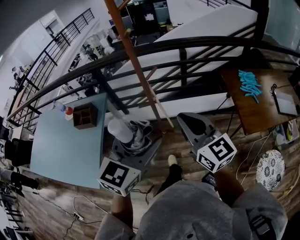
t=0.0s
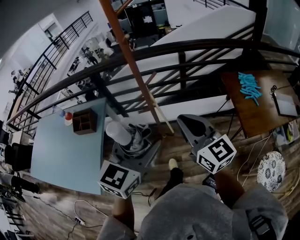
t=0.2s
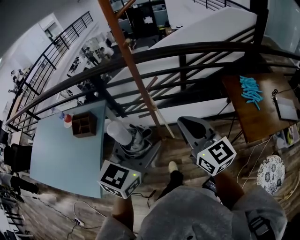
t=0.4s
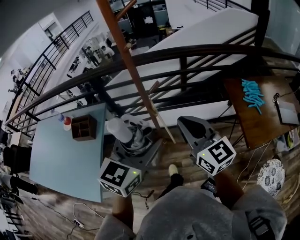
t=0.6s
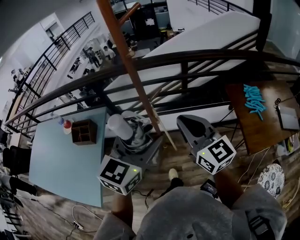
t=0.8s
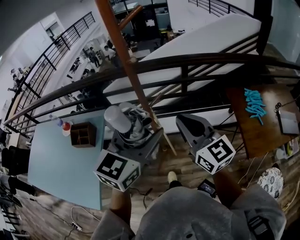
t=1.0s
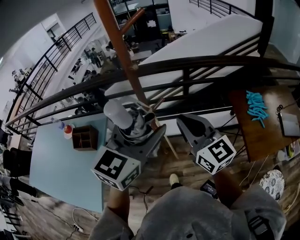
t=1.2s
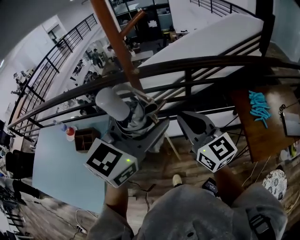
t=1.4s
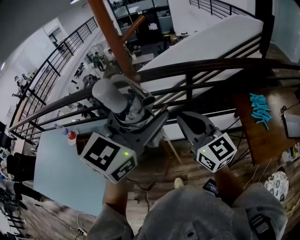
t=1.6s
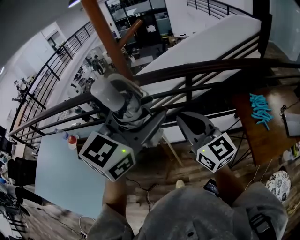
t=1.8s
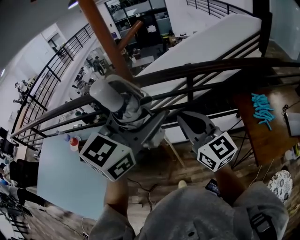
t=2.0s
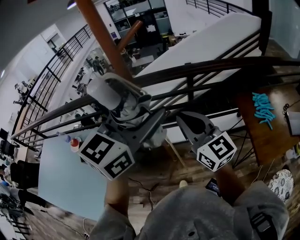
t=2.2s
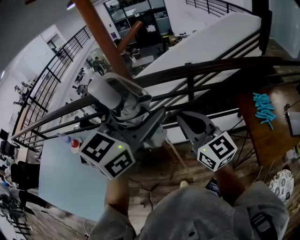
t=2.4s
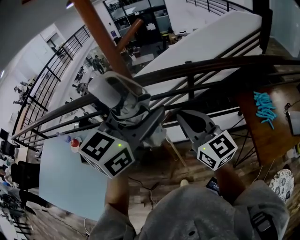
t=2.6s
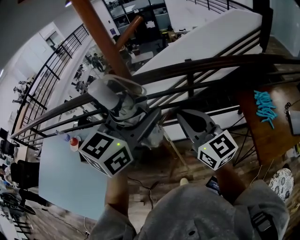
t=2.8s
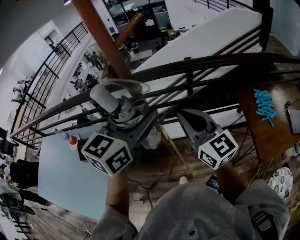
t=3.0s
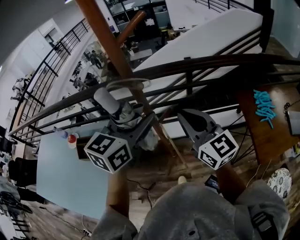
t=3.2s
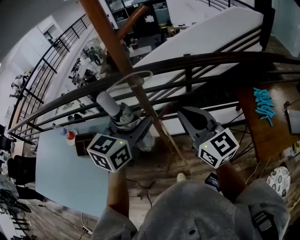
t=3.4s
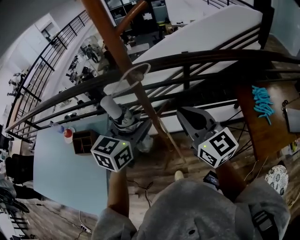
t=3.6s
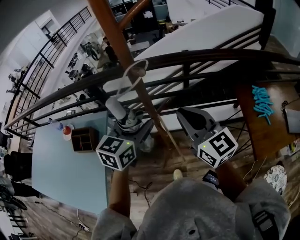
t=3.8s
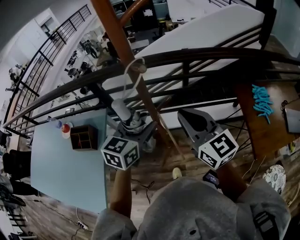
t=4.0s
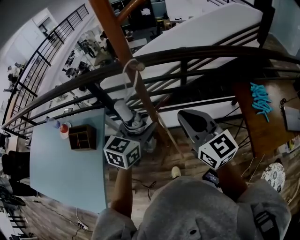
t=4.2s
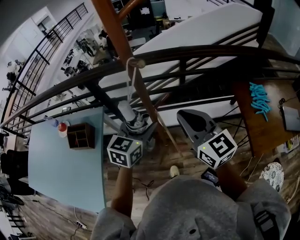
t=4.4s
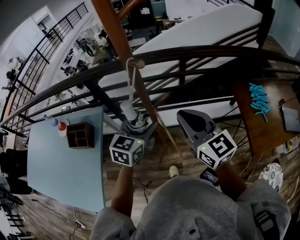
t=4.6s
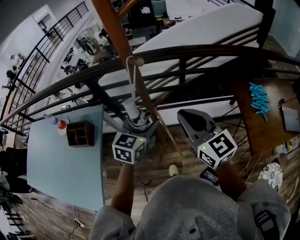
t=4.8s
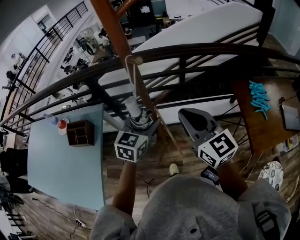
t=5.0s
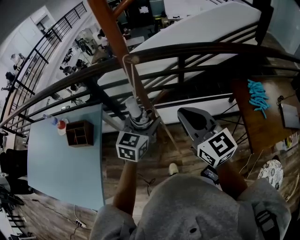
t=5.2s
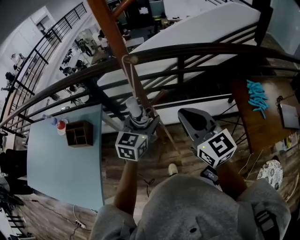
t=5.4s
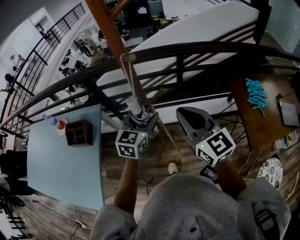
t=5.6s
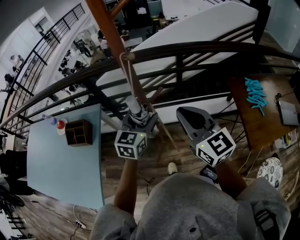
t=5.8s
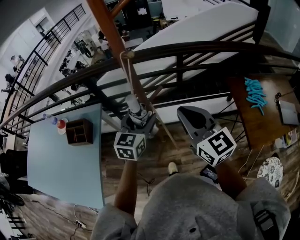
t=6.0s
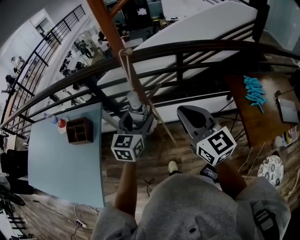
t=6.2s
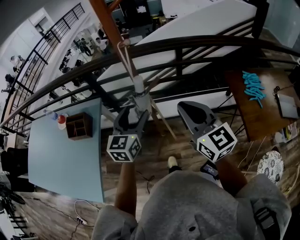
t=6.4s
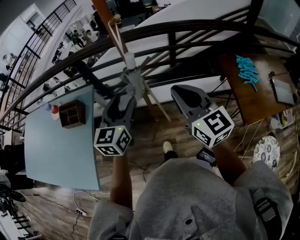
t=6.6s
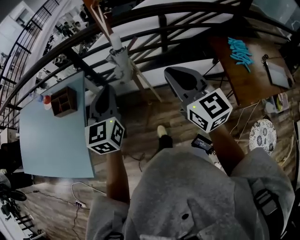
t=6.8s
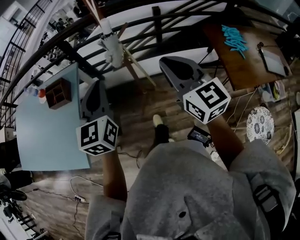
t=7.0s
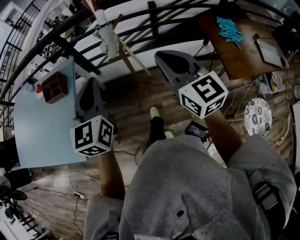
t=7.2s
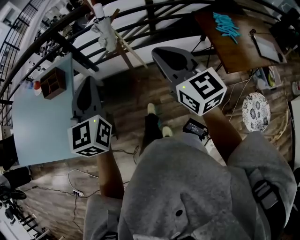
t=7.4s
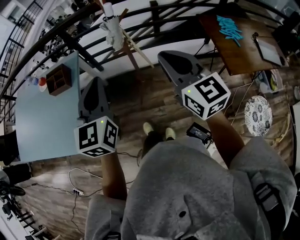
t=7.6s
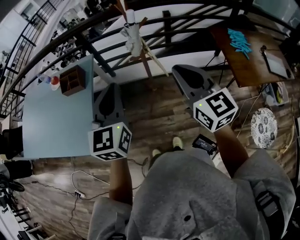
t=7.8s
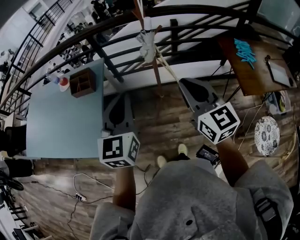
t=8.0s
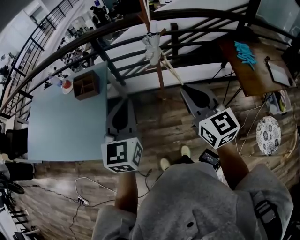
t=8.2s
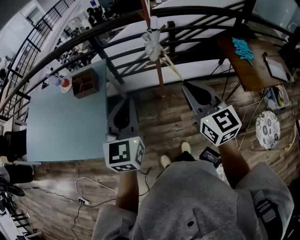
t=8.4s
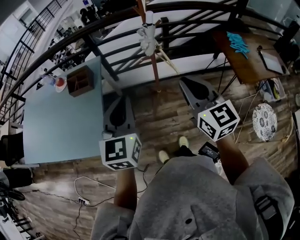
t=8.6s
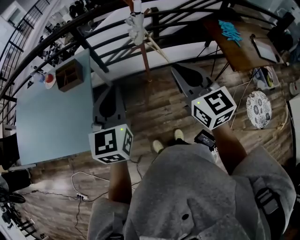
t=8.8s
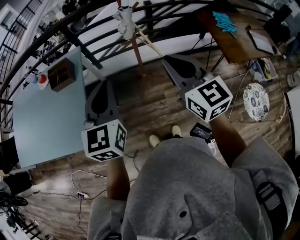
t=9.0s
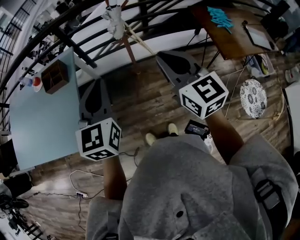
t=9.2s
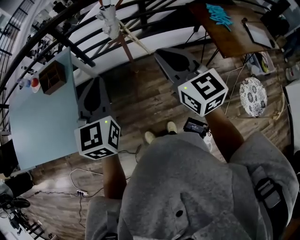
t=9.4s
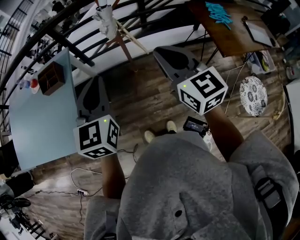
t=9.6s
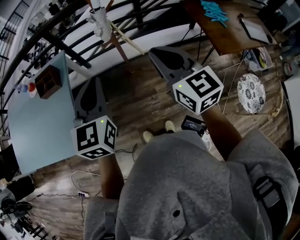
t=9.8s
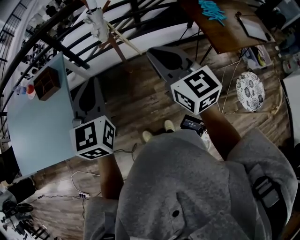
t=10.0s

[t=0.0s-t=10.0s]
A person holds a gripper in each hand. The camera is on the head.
t=0.0s to t=1.4s: The right gripper moves forward, about 20 cm. Meanwhile the left gripper heads forward and upward, covering approximately 25 cm.
t=1.4s to t=2.8s: The grippers both shift forward by about 5 cm.
t=2.8s to t=4.2s: The left gripper goes about 20 cm downward; the right gripper ends up roughly 5 cm from where it was.
t=4.2s to t=5.8s: There are only small adjustments of the grippers.
t=5.8s to t=7.2s: Both grippers move backward, approximately 20 cm. The left gripper changes its angle by about 20 degrees, and closes.
t=7.2s to t=8.6s: The two grippers go roughly 20 cm to the left and backward.
t=8.6s to t=10.0s: Both grippers move to the right, some 10 cm.

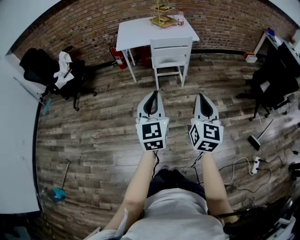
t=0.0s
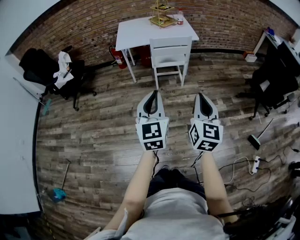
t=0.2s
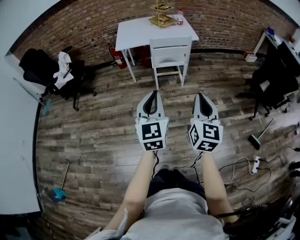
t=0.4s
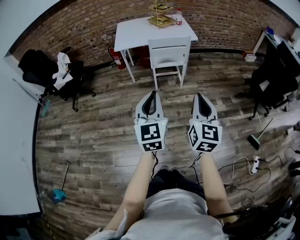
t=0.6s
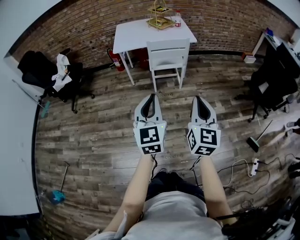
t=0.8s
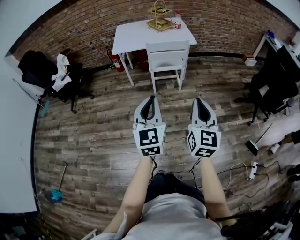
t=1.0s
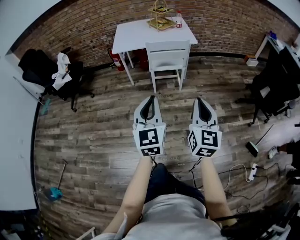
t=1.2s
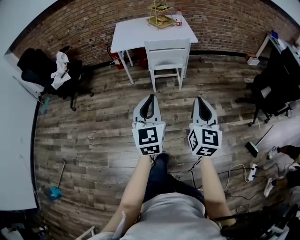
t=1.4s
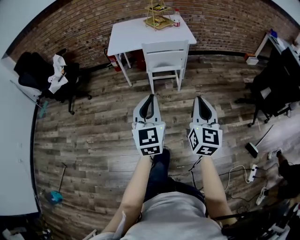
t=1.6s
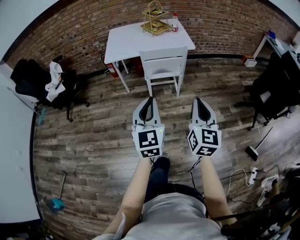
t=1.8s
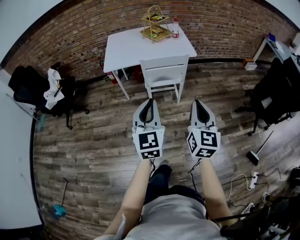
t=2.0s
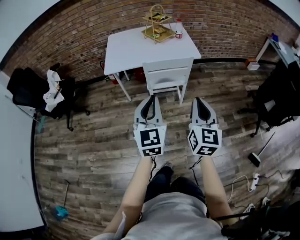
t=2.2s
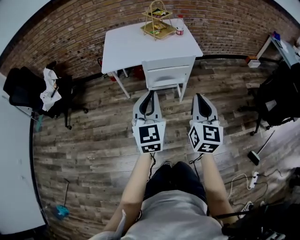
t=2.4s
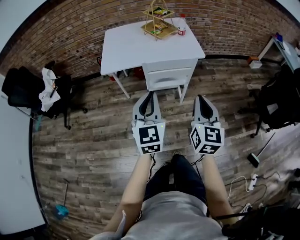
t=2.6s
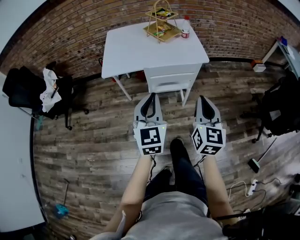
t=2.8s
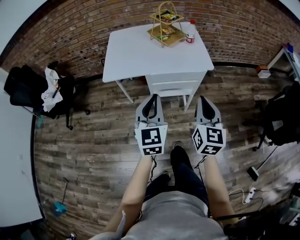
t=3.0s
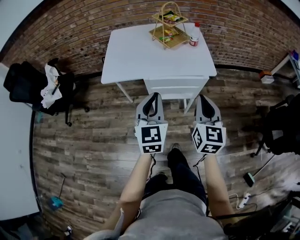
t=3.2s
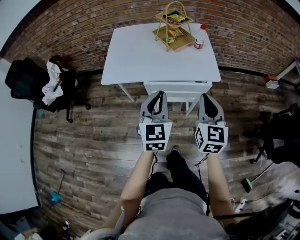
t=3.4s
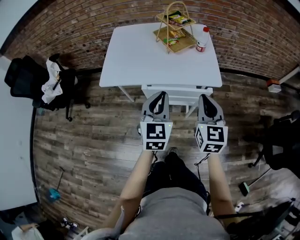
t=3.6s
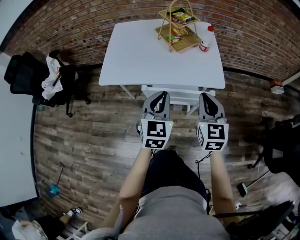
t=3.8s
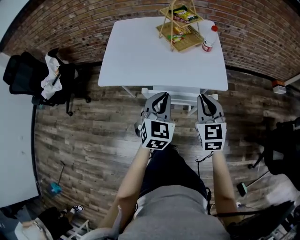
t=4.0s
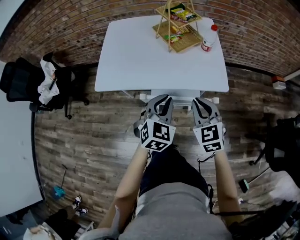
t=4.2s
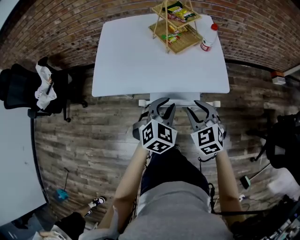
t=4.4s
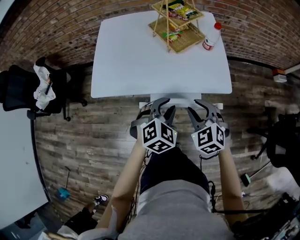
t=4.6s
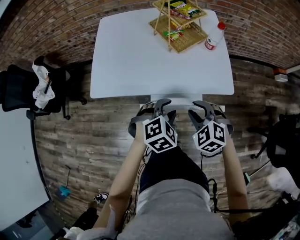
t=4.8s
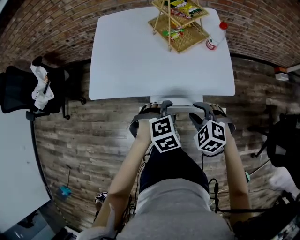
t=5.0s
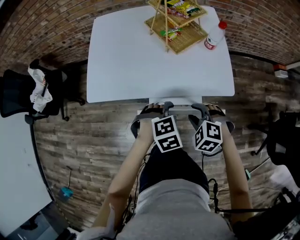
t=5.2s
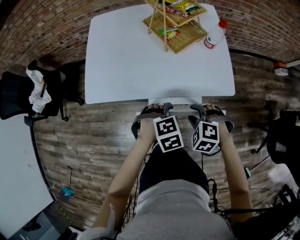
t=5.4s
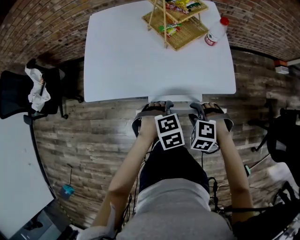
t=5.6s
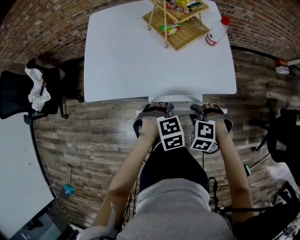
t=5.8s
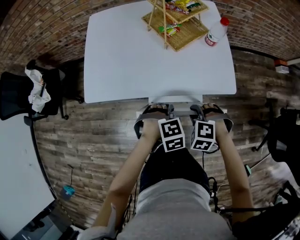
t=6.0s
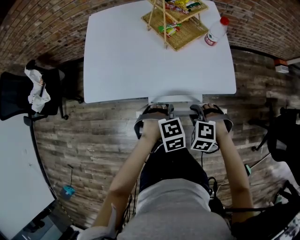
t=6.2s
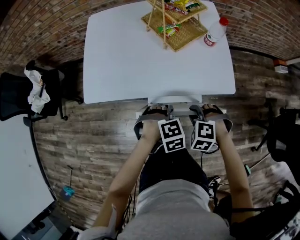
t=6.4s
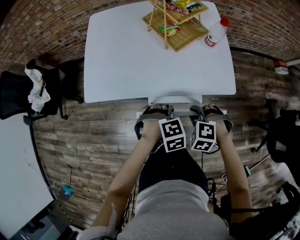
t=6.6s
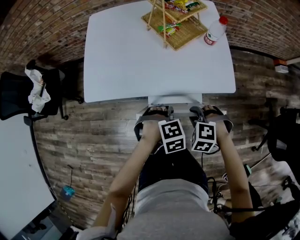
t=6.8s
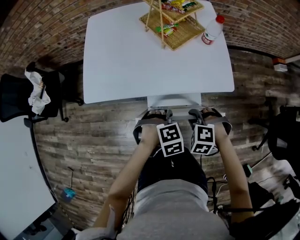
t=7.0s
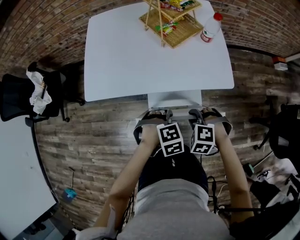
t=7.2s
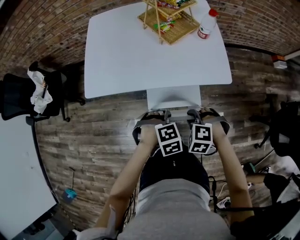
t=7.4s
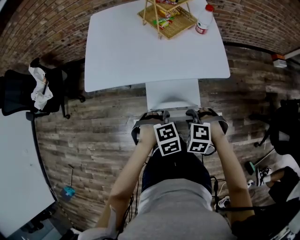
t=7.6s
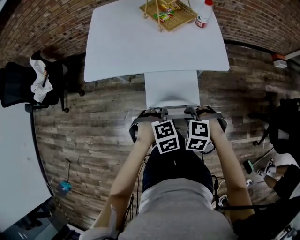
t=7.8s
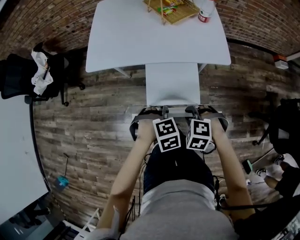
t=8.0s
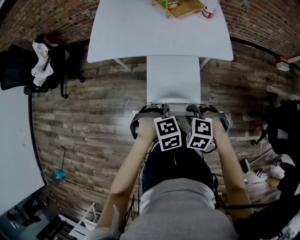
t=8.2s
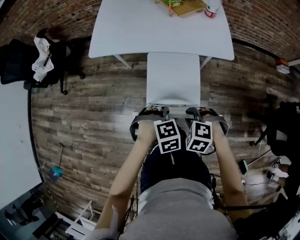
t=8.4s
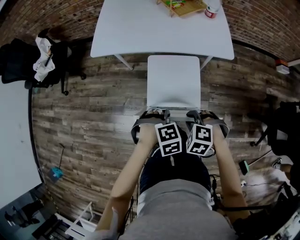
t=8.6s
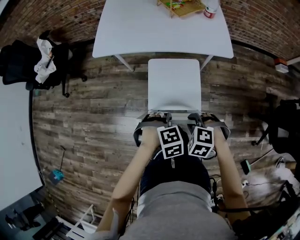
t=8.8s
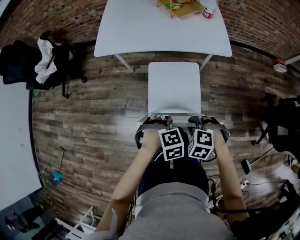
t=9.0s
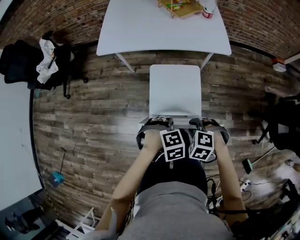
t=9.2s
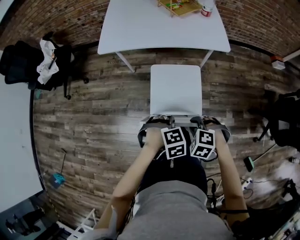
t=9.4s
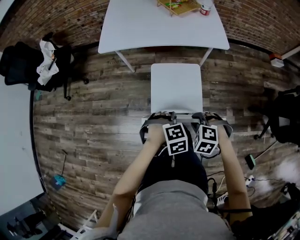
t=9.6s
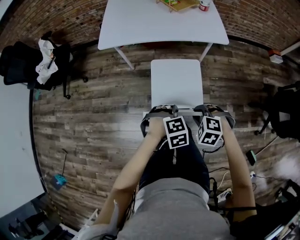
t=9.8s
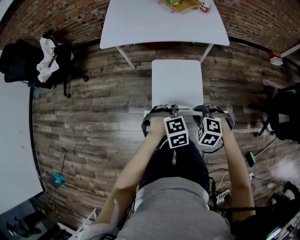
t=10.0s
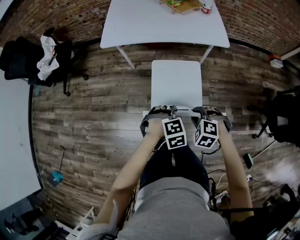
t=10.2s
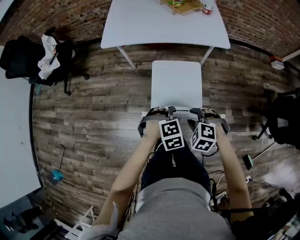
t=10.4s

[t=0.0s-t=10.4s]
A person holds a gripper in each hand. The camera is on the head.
t=0.0s to t=1.4s: The left gripper moves some 5 cm, while the right gripper goes about 5 cm forward.
t=1.4s to t=3.0s: The grippers both shift forward by some 40 cm.
t=3.0s to t=4.4s: The grippers both shift forward and downward by some 25 cm. The right gripper changes its angle by about 50 degrees, and opens up; the left gripper points its fingers some 30 degrees further downward, and opens its fingers.
t=4.4s to t=6.0s: The grippers both shift downward by approximately 10 cm. The left gripper angles its fingers downward, by about 40 degrees, and opens and closes again. The right gripper tilts its fingers roughly 40 degrees downward.
t=6.0s to t=7.4s: The right gripper ends up some 5 cm from where it was; the left gripper changes place by some 5 cm.
t=7.4s to t=9.0s: The right gripper shifts by some 25 cm, while the left gripper shifts by about 25 cm.
t=9.0s to t=10.4s: The right gripper opens its fingers.

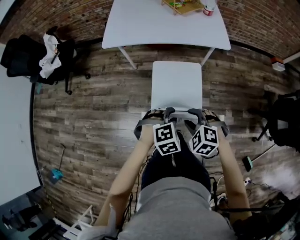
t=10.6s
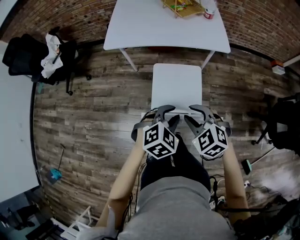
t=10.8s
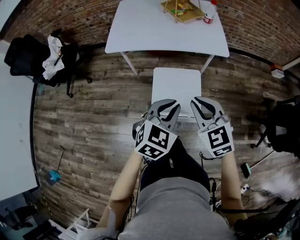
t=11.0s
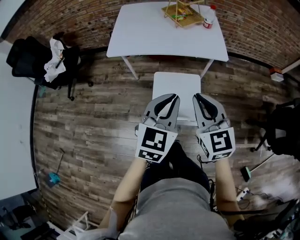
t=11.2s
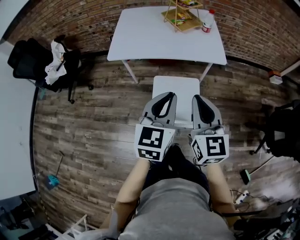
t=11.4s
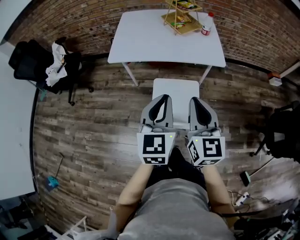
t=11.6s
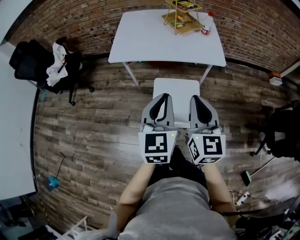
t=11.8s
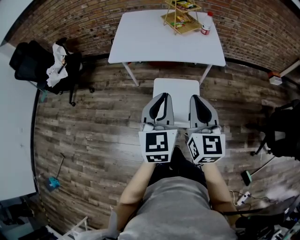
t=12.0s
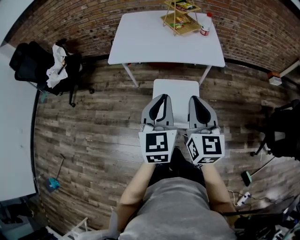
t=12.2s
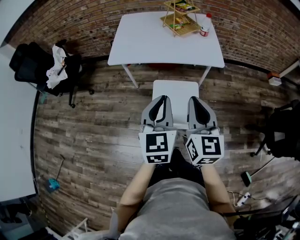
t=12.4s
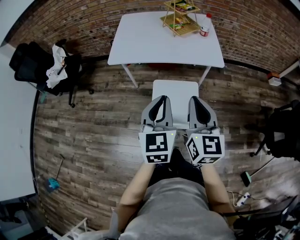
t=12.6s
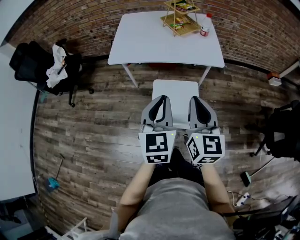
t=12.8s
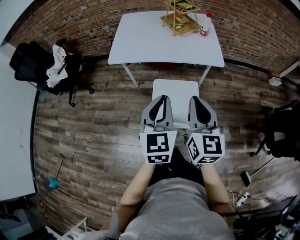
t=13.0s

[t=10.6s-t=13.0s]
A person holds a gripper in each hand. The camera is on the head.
t=10.6s to t=11.8s: The grippers both shift upward by about 20 cm. The right gripper angles its fingers upward, by some 50 degrees, and closes its fingers. The left gripper tips its fingers upward by about 50 degrees, and closes its fingers.
t=11.8s to t=13.0s: Neither gripper changes place.

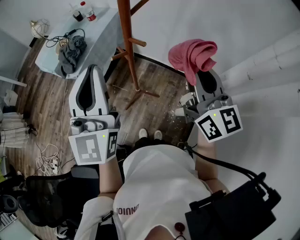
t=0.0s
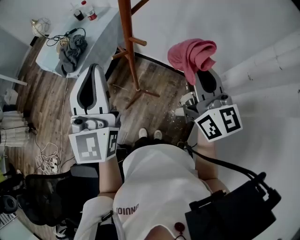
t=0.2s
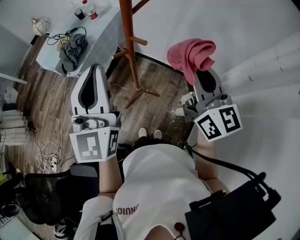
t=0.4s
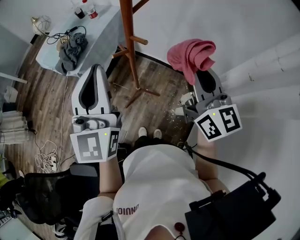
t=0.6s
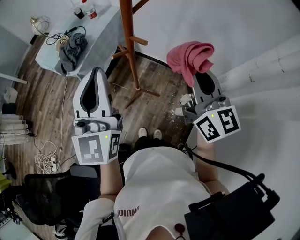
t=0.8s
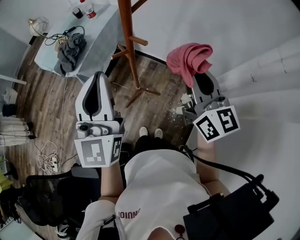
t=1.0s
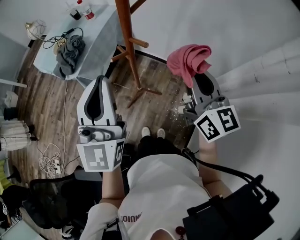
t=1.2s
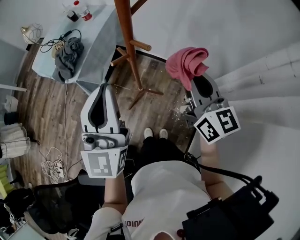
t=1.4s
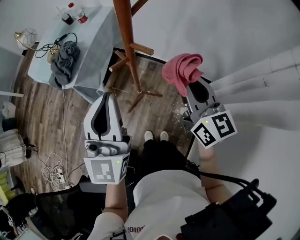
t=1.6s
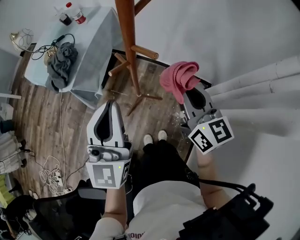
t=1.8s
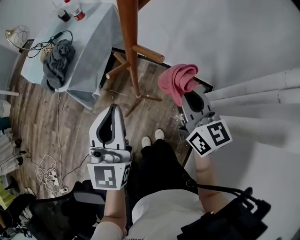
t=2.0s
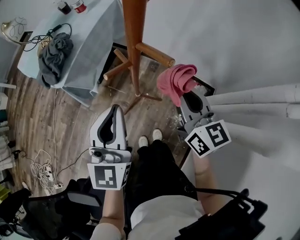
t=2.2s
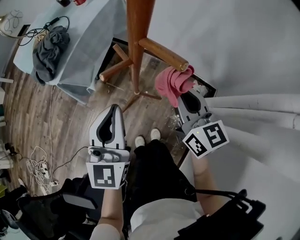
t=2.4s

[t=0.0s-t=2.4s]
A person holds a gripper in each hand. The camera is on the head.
t=0.0s to t=1.2s: The right gripper travels downward by approximately 5 cm.
t=1.2s to t=2.4s: The right gripper moves downward and forward, about 20 cm. Meanwhile the left gripper shifts approximately 20 cm downward.
